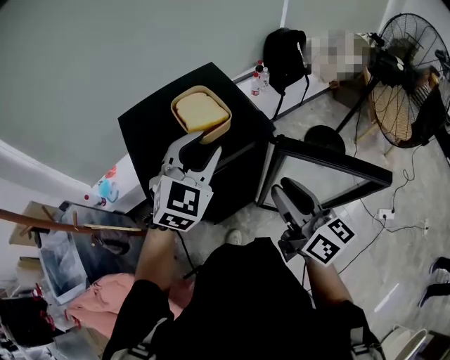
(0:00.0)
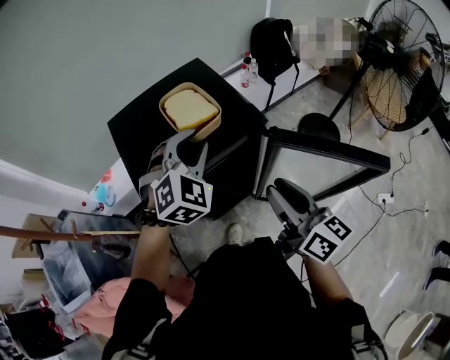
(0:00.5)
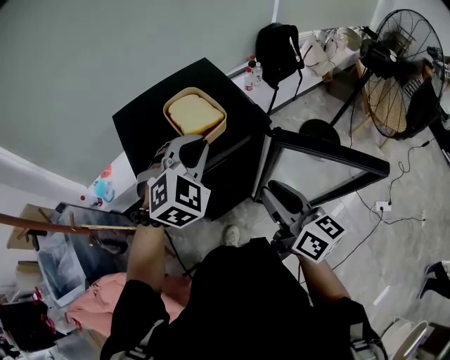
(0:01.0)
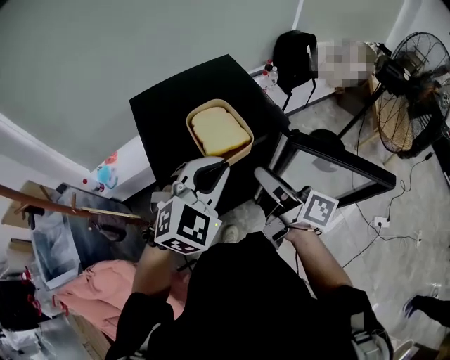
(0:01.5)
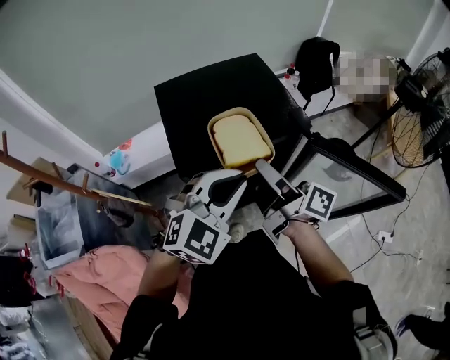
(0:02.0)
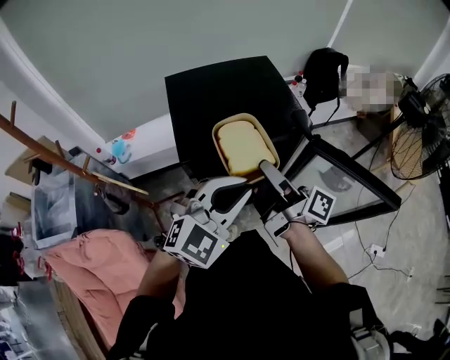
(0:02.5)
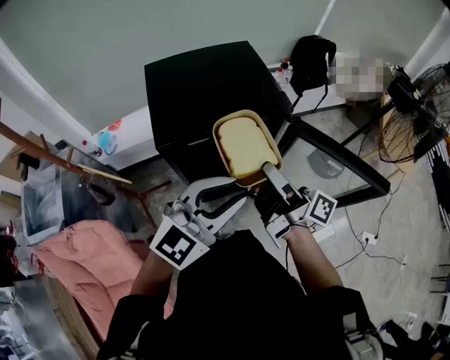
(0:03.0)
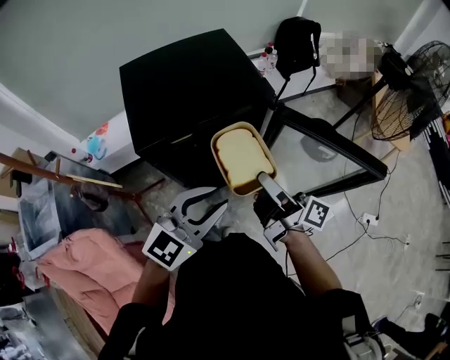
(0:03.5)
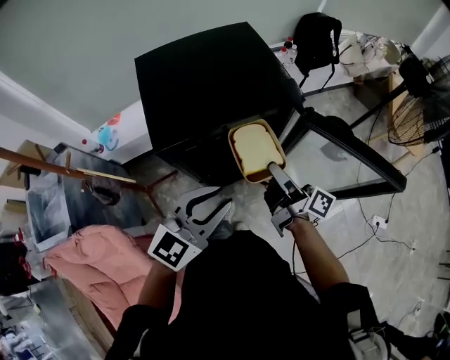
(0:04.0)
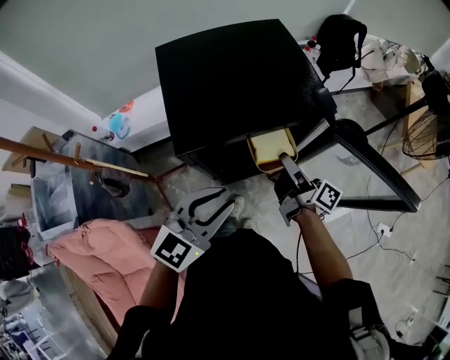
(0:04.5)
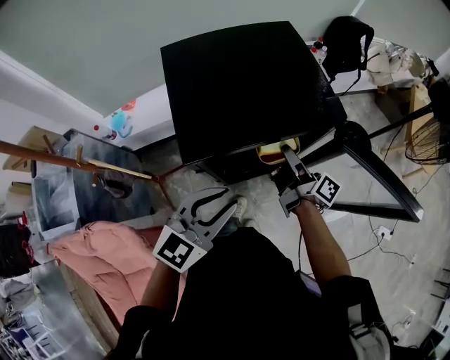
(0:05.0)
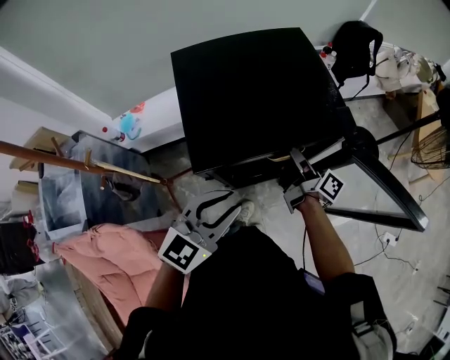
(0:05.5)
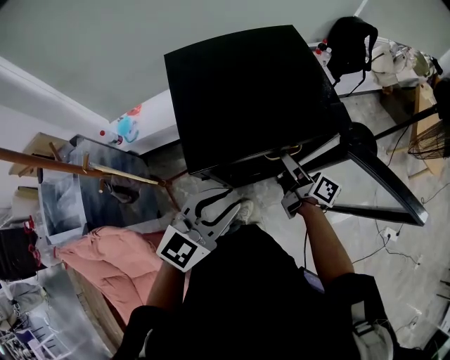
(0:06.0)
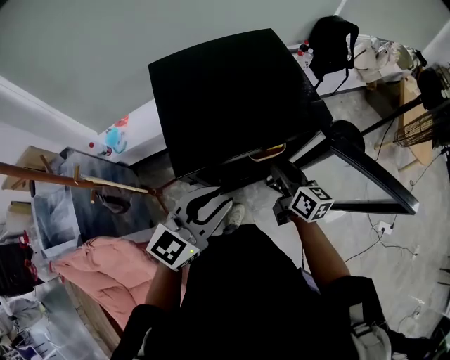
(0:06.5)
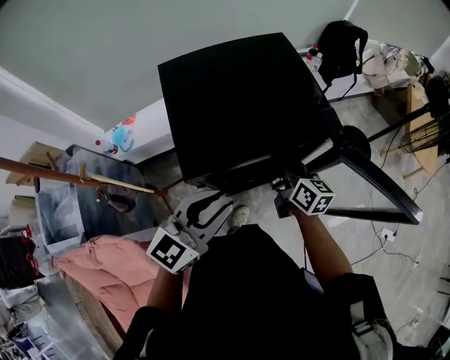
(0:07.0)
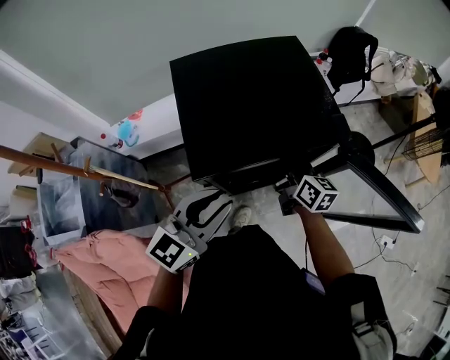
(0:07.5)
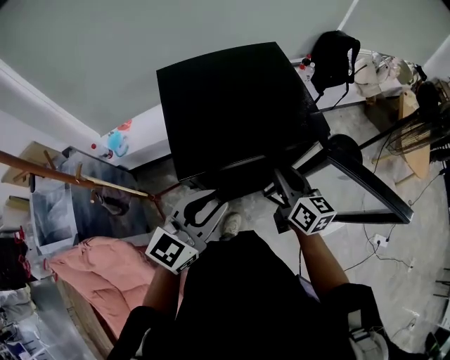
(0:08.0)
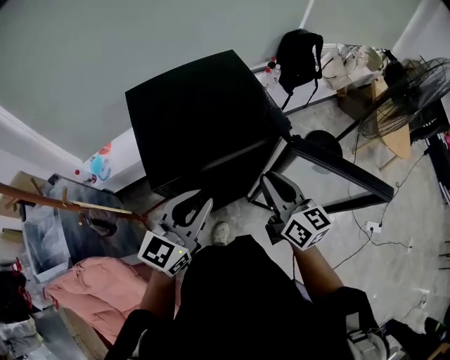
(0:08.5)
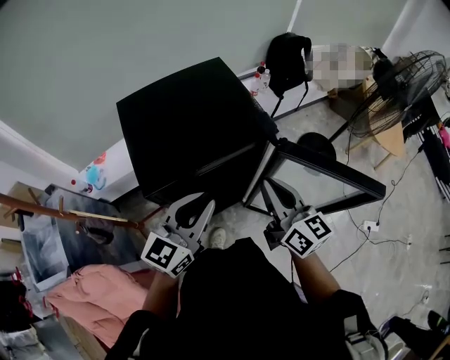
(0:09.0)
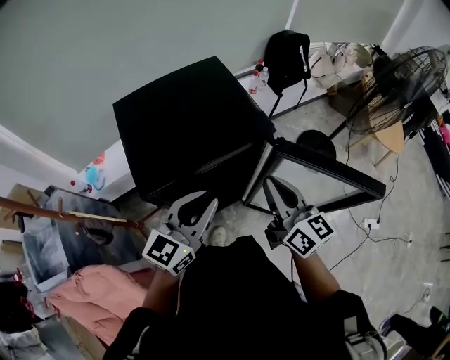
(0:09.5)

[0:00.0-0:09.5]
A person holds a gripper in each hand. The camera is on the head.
0:00.0 to 0:02.0: The right gripper shifts about 10 cm to the left, changes its angle by roughly 40 degrees, and opens up. The left gripper shifts some 10 cm backward, and closes its fingers.
0:02.0 to 0:04.0: The left gripper goes roughly 10 cm backward and downward, and rotates roughly 30 degrees, while the right gripper shifts roughly 15 cm downward and to the right.
0:04.0 to 0:05.5: The right gripper heads forward, to the left and downward, covering roughly 15 cm, while the left gripper shifts some 5 cm to the left.
0:05.5 to 0:07.5: The right gripper rotates around the line of its fingers by approximately 40 degrees, counterclockwise from behind.
0:07.5 to 0:09.5: The right gripper is displaced upward, backward and to the right by approximately 20 cm, and rotates approximately 20 degrees. The left gripper heads to the right, covering approximately 10 cm.

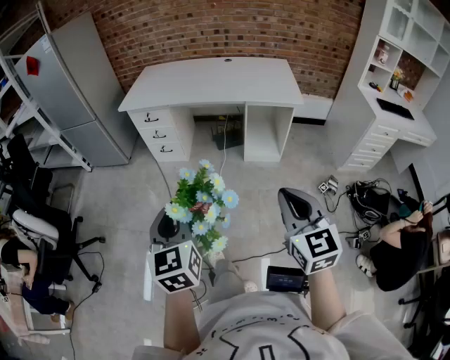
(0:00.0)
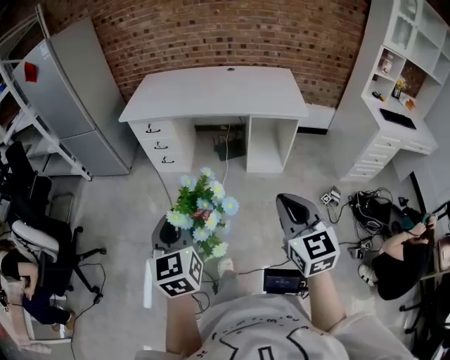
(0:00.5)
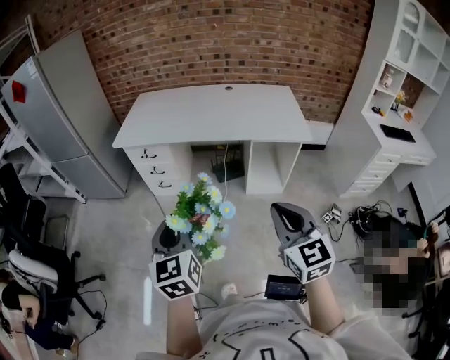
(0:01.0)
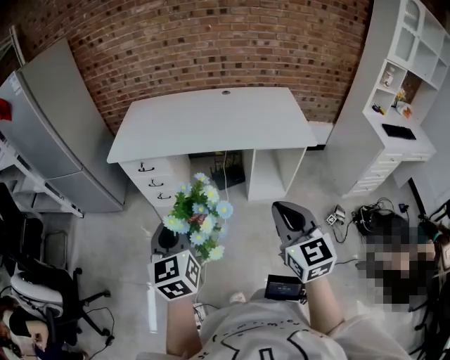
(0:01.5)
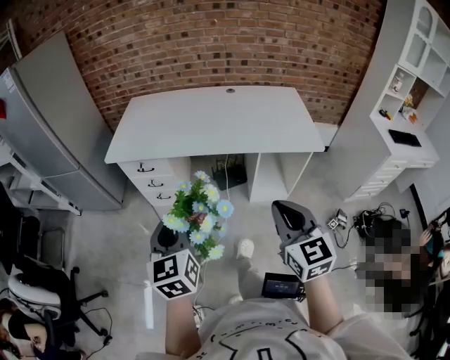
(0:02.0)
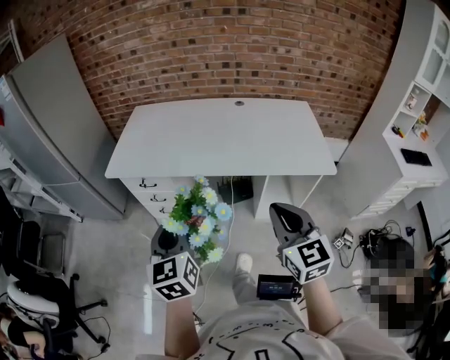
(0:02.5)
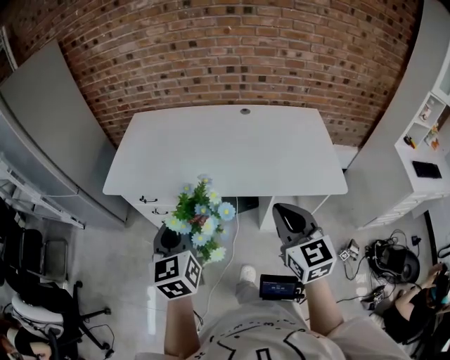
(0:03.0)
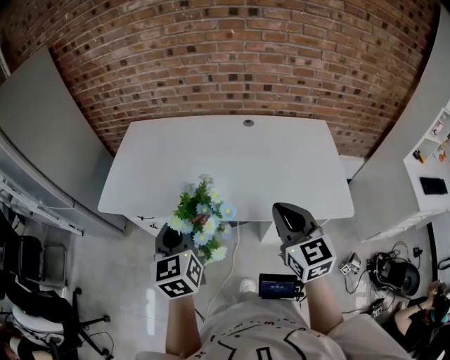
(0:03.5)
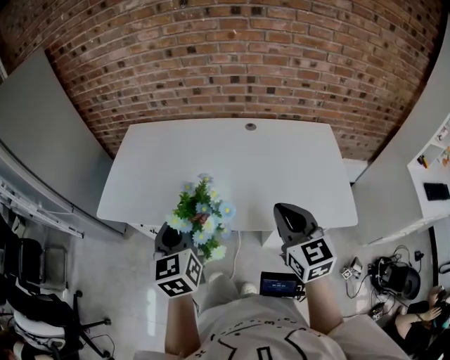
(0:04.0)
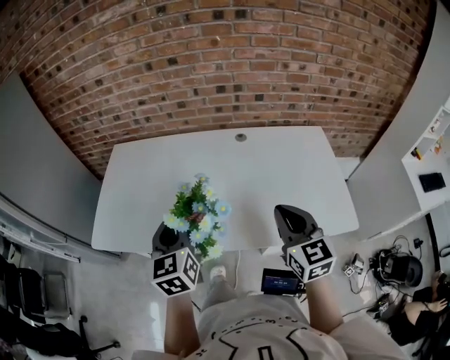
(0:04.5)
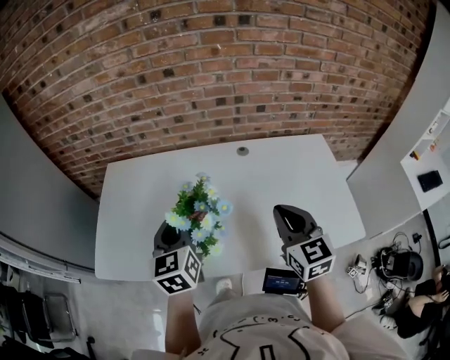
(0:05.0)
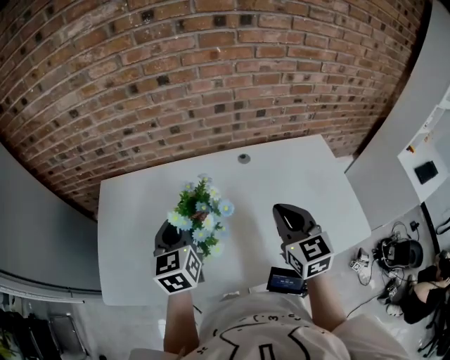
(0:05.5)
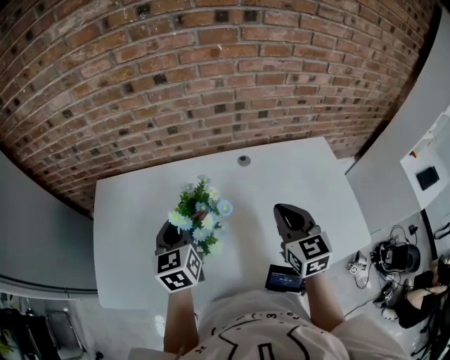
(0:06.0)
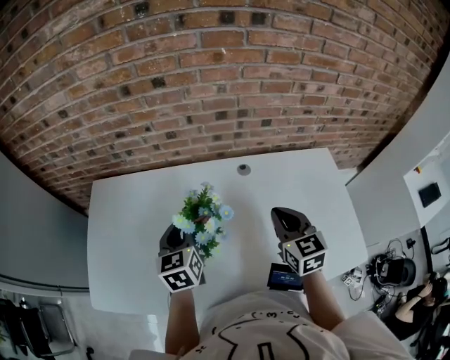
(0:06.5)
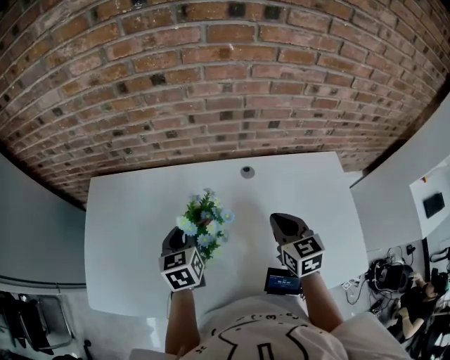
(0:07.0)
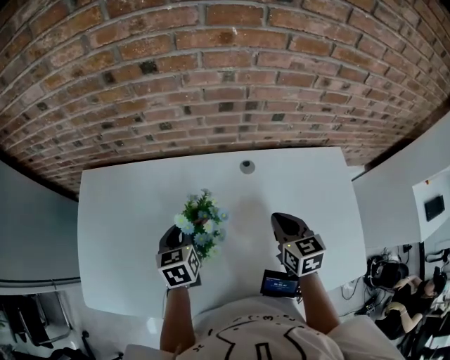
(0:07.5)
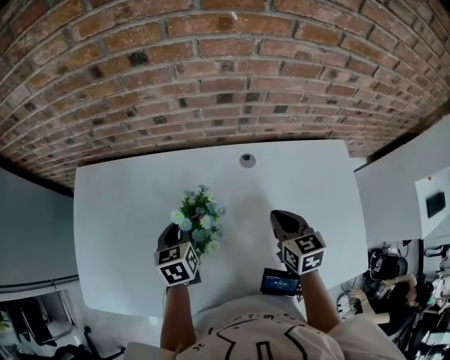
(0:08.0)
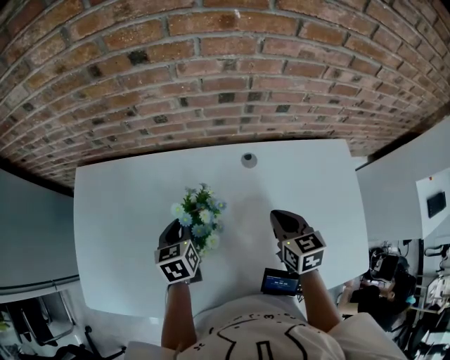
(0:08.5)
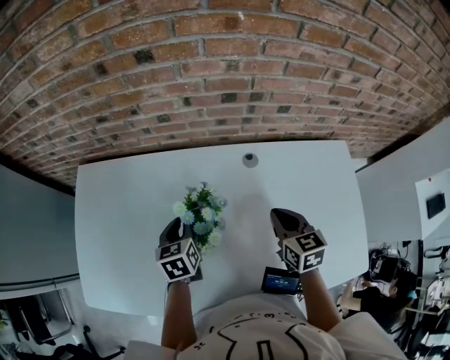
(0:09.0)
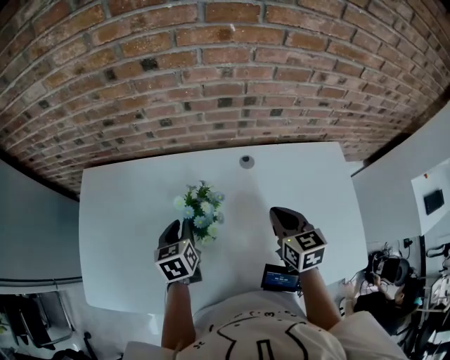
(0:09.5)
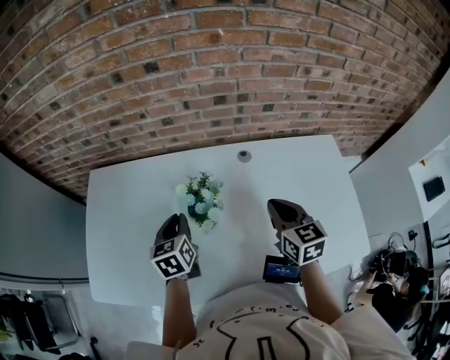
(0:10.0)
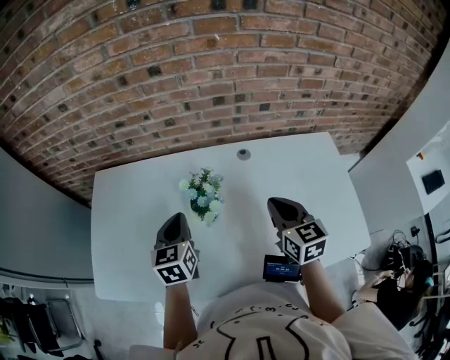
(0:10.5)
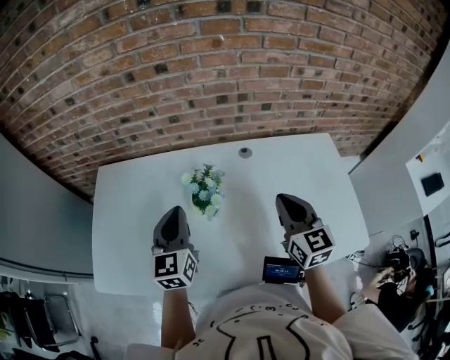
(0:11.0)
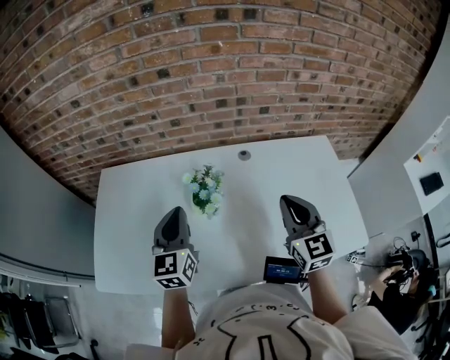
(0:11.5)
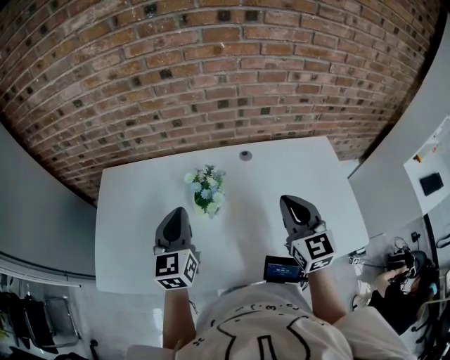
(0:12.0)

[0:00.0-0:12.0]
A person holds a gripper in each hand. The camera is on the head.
0:00.0 to 0:02.0: The grippers both shift forward by some 35 cm.
0:02.0 to 0:04.0: Both grippers move forward, roughly 40 cm.
0:04.0 to 0:06.0: The two grippers go some 30 cm forward.
0:06.0 to 0:08.0: The left gripper shifts approximately 15 cm downward and forward, and swivels some 20 degrees. The right gripper heads downward, forward and to the right, covering about 15 cm, and rotates some 20 degrees.
0:08.0 to 0:10.0: The two grippers go some 5 cm upward.
0:10.0 to 0:12.0: The right gripper shifts some 10 cm backward and upward, and turns by approximately 20 degrees, while the left gripper goes approximately 15 cm upward and backward, and swivels roughly 30 degrees.

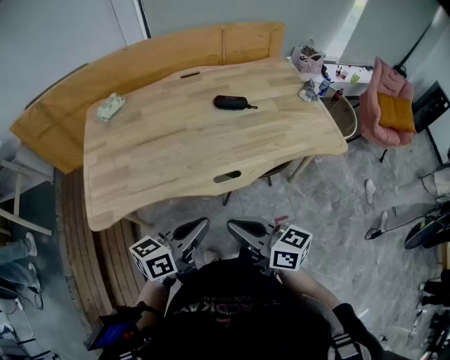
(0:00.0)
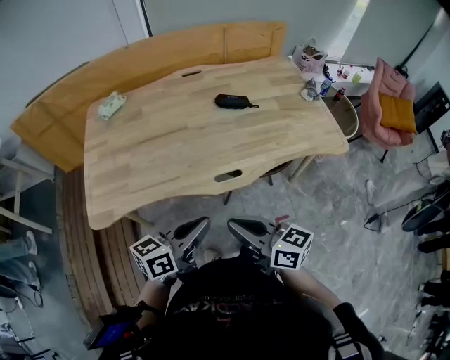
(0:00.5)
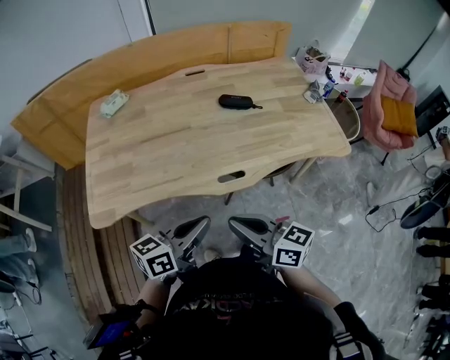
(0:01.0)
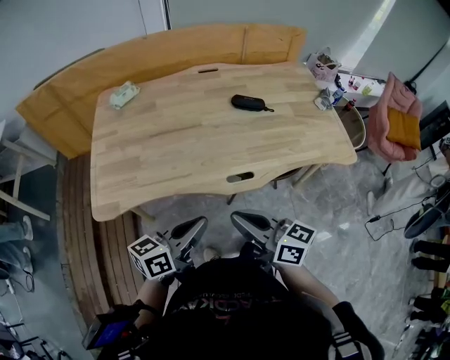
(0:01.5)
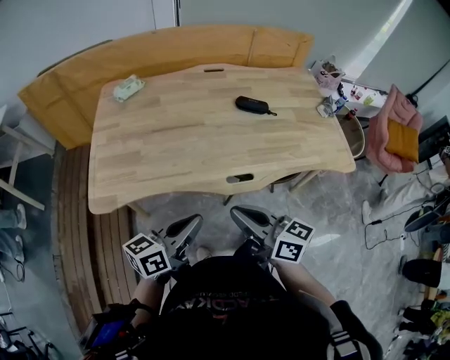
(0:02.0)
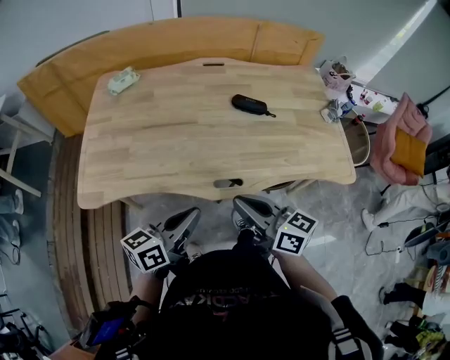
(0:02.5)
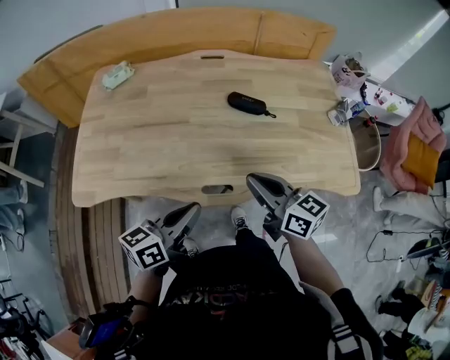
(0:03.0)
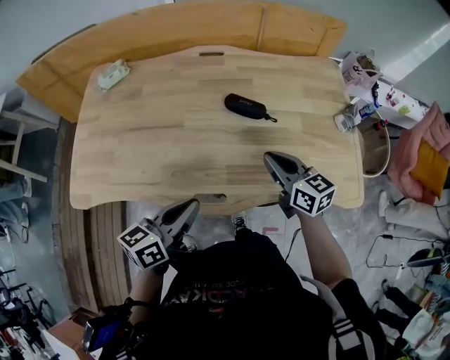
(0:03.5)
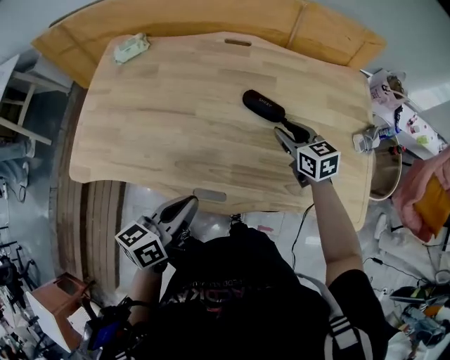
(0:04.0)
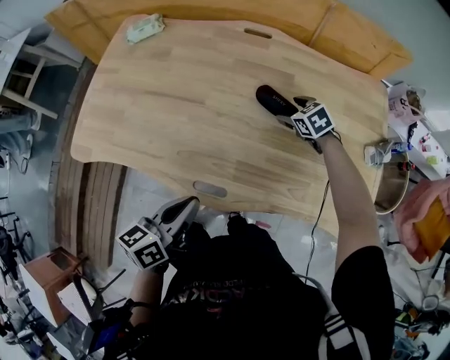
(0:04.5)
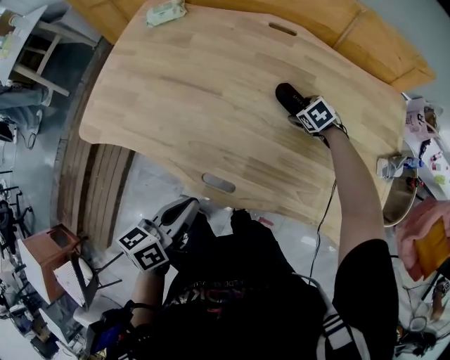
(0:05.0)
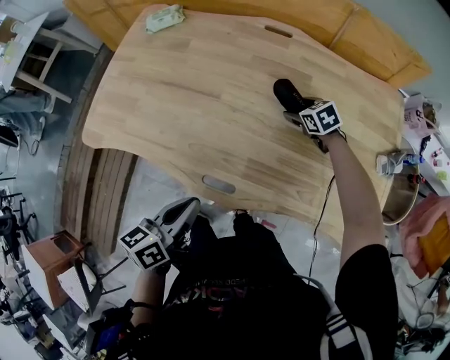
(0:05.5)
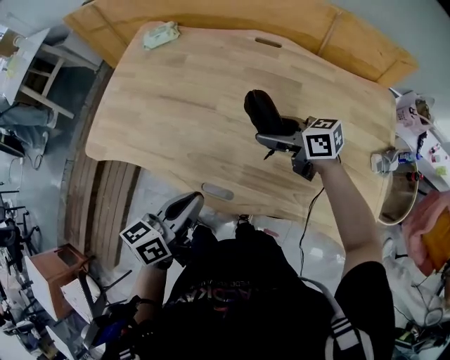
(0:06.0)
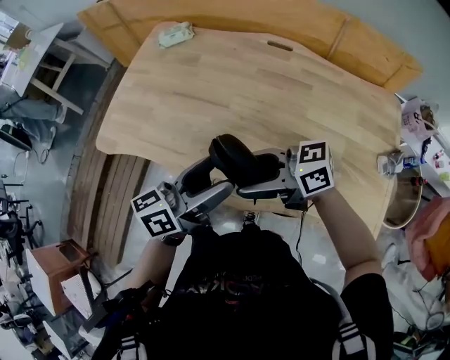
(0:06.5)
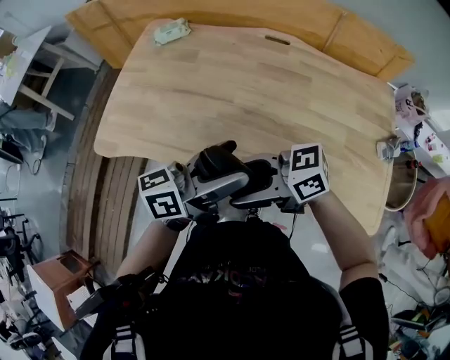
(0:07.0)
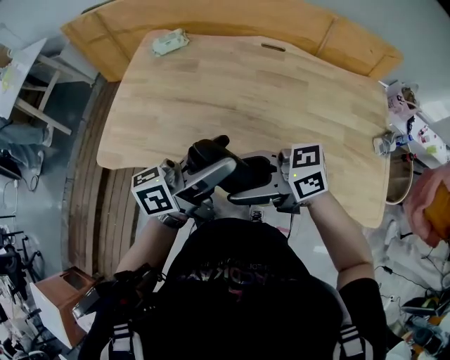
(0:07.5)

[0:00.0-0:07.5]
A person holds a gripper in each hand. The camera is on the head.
0:00.0 to 0:02.0: The left gripper heads to the left, covering some 5 cm.
0:02.0 to 0:04.0: The right gripper goes about 50 cm forward and to the right, and turns by about 40 degrees. The left gripper moves to the right and forward, approximately 20 cm, and rotates some 30 degrees.
0:04.0 to 0:05.5: The right gripper goes some 15 cm downward and forward, rotates approximately 30 degrees, and opens up.
0:05.5 to 0:07.5: The left gripper heads upward, covering some 15 cm, angles its fingers upward, by about 30 degrees, and opens. Meanwhile the right gripper shifts by approximately 50 cm, and points its fingers roughly 50 degrees further upward.
